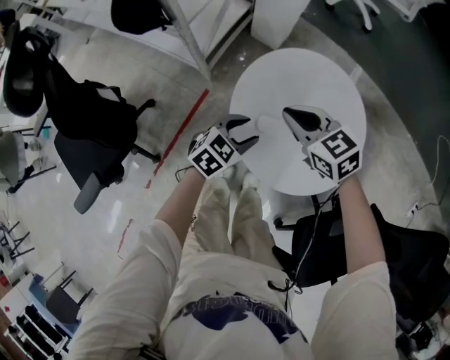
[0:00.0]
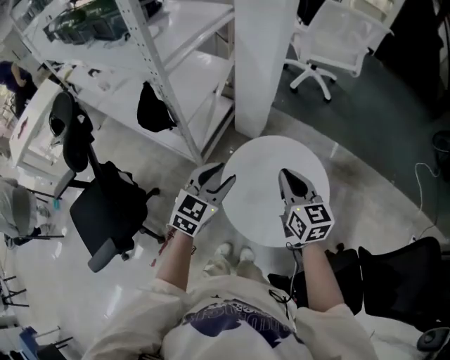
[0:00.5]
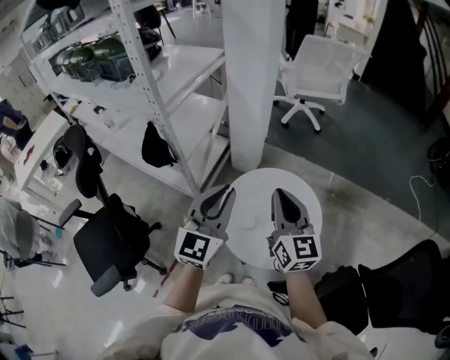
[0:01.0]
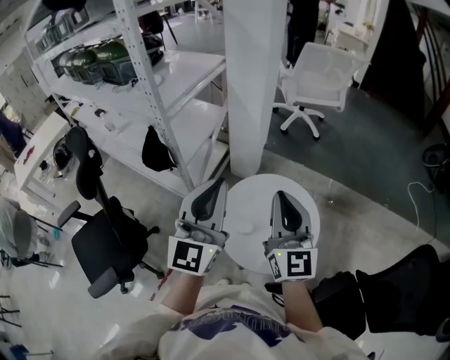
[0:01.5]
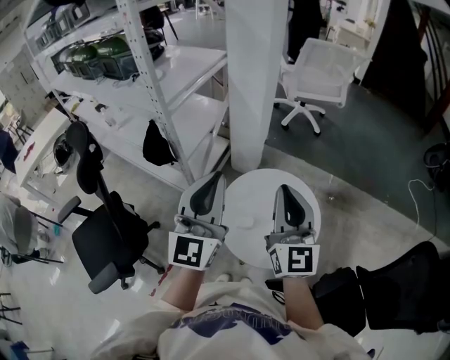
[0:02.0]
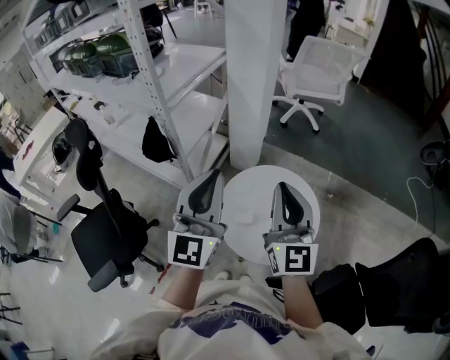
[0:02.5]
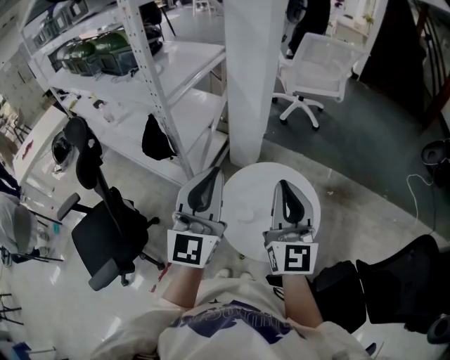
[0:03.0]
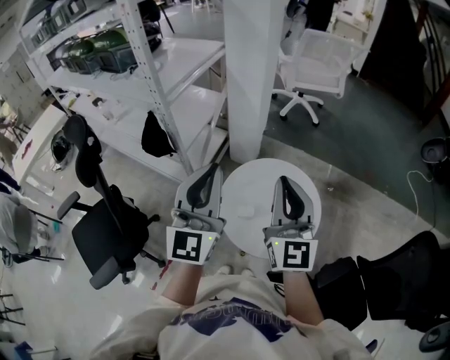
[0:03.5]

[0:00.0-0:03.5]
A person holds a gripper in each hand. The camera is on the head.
0:00.0 to 0:02.0: The two grippers go roughly 40 cm upward. The left gripper tips its fingers upward by approximately 60 degrees, and closes up. Meanwhile the right gripper angles its fingers upward, by some 50 degrees.
0:02.0 to 0:03.5: The grippers make only small movements.

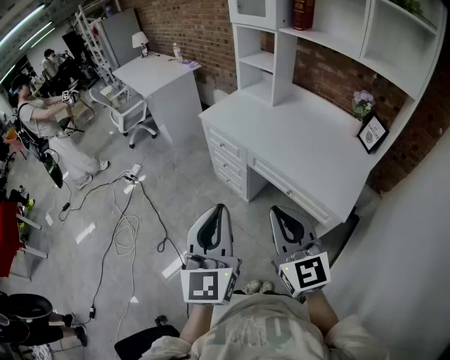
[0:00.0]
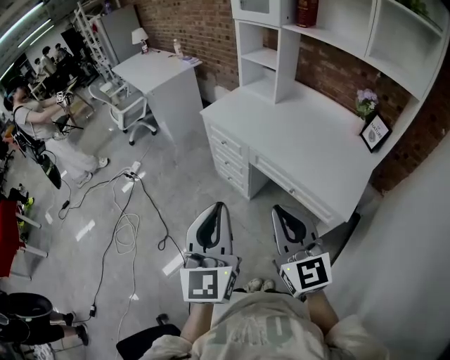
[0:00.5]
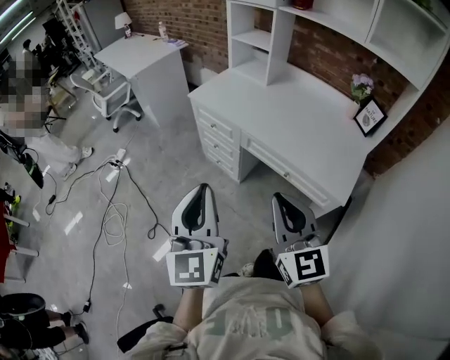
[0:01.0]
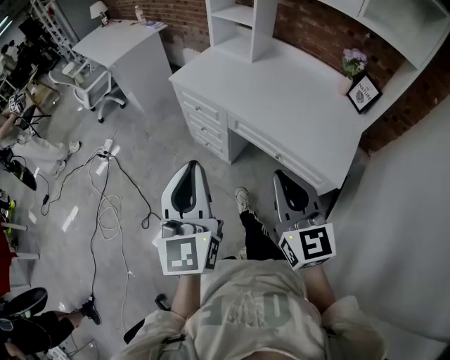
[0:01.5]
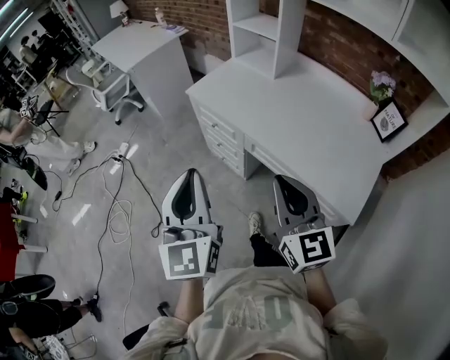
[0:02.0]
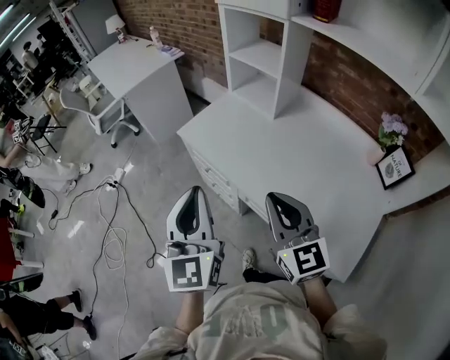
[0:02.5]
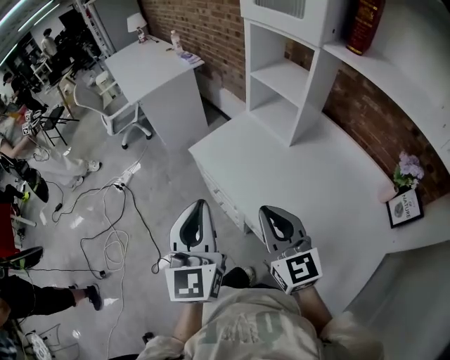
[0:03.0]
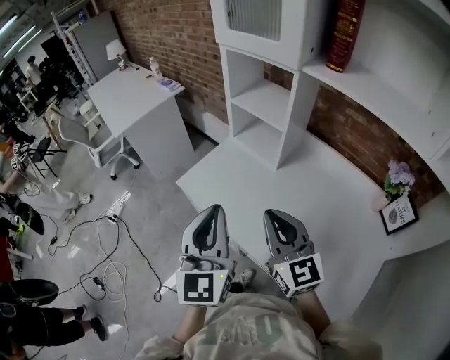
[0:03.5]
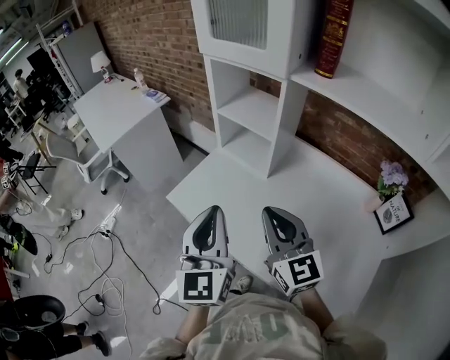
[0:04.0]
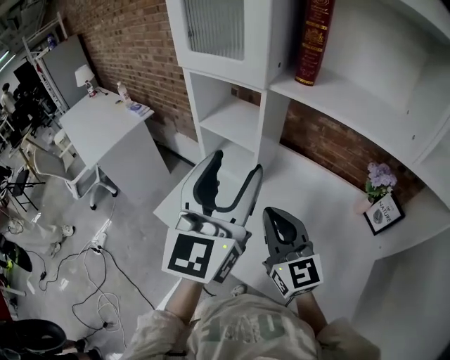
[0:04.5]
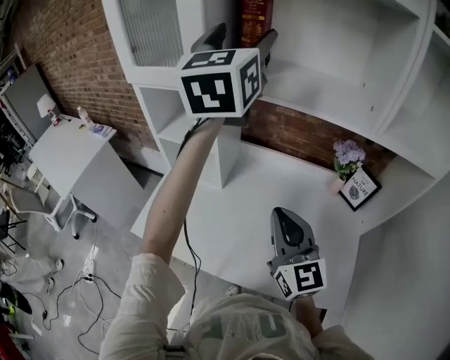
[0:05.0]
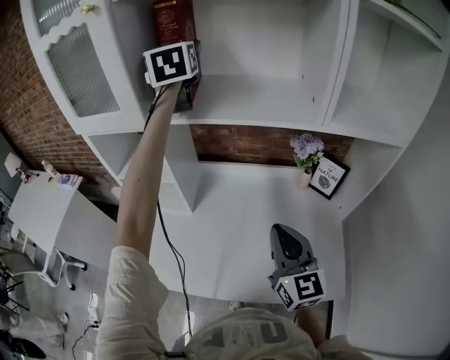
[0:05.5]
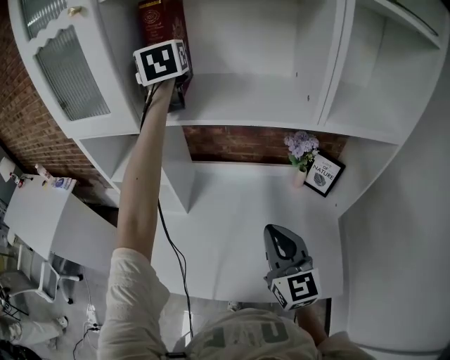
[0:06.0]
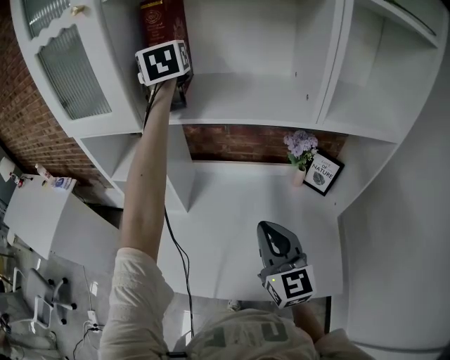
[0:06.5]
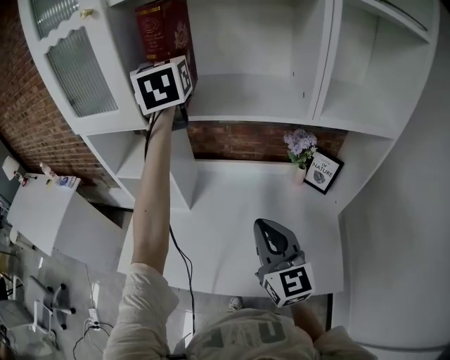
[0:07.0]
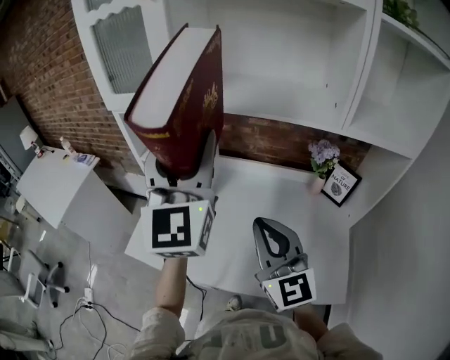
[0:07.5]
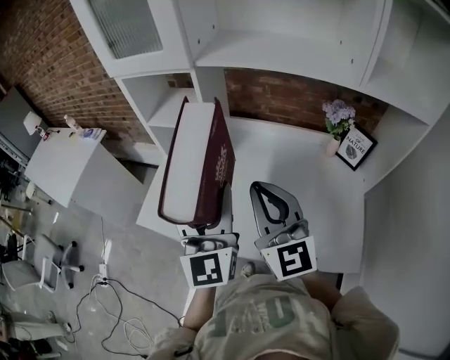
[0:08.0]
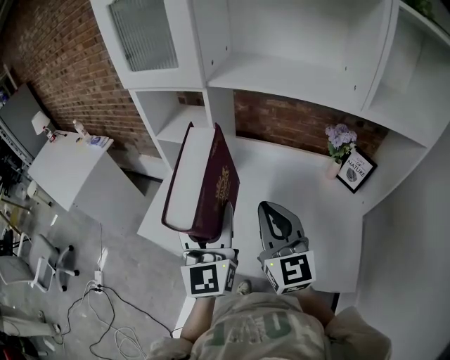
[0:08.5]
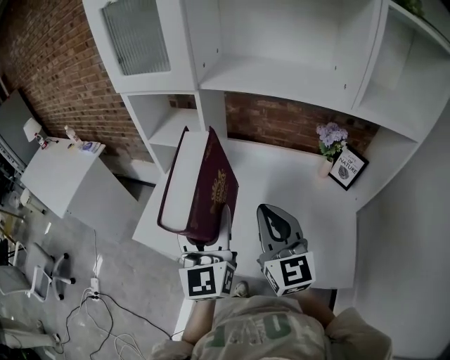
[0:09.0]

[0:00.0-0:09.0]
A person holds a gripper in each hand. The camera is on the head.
0:00.0 to 0:02.0: The grippers both shift forward by about 15 cm.
0:02.0 to 0:04.5: The right gripper shifts by roughly 40 cm, while the left gripper moves roughly 50 cm, rotates approximately 30 degrees, and opens.
0:04.5 to 0:07.0: The left gripper goes roughly 35 cm forward, upward and to the right. The right gripper shifts some 15 cm to the right, and turns by about 30 degrees.
0:07.0 to 0:09.0: The right gripper is displaced to the left by roughly 10 cm. The left gripper moves backward and downward, roughly 40 cm.

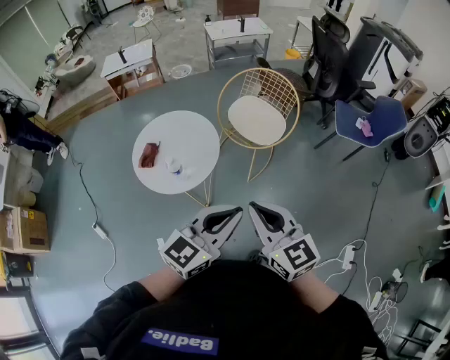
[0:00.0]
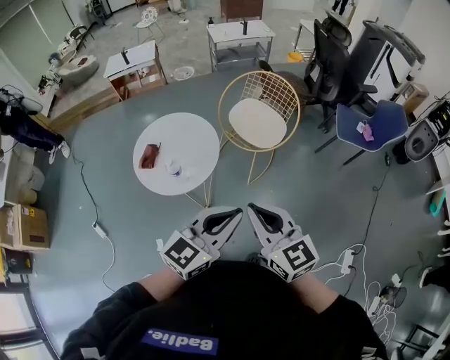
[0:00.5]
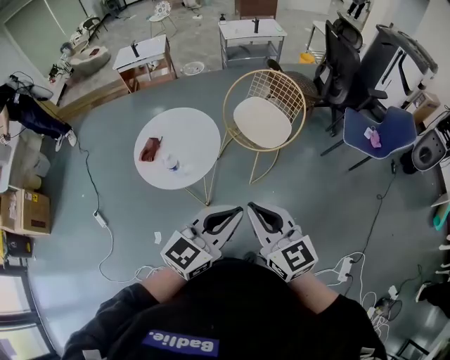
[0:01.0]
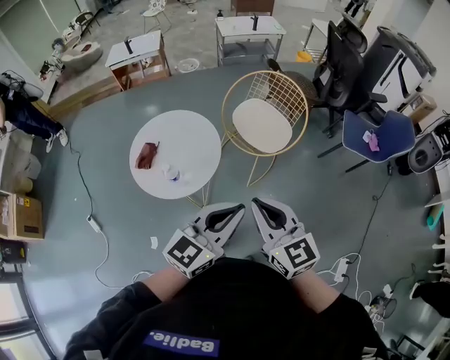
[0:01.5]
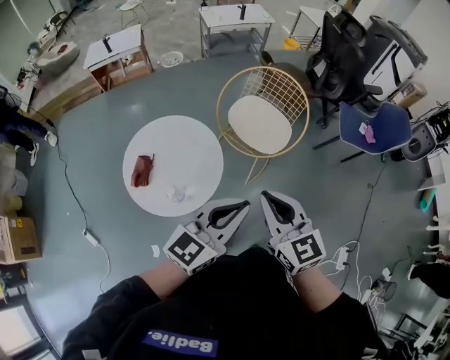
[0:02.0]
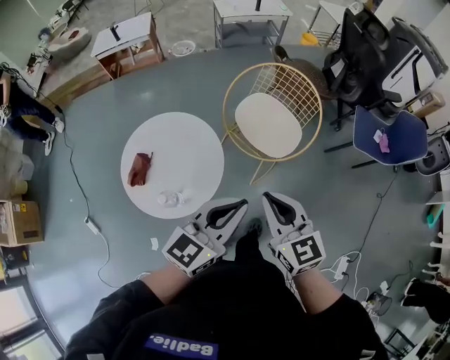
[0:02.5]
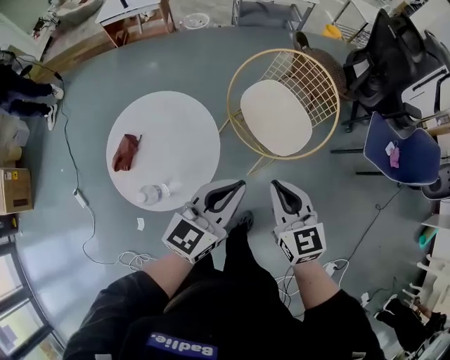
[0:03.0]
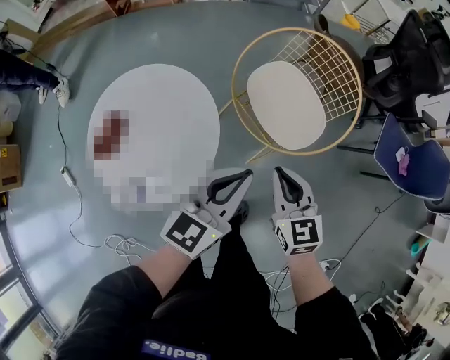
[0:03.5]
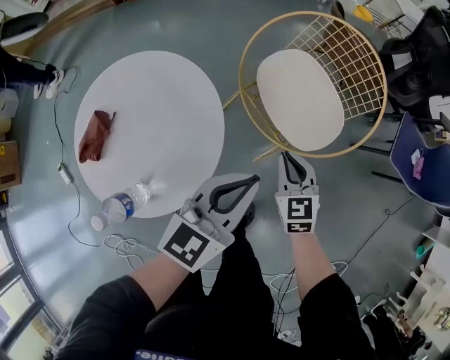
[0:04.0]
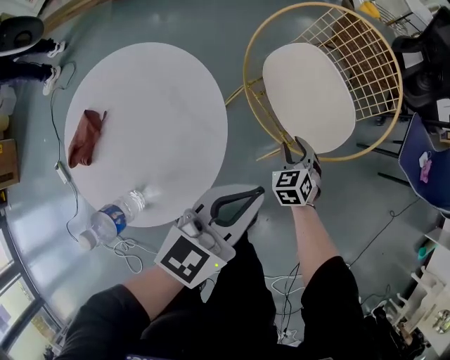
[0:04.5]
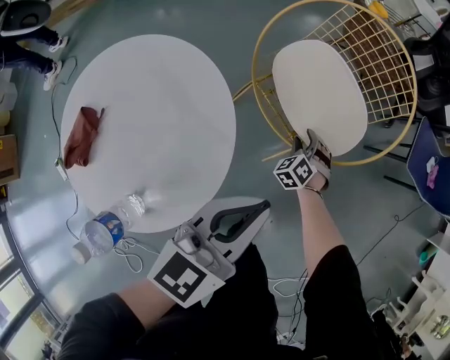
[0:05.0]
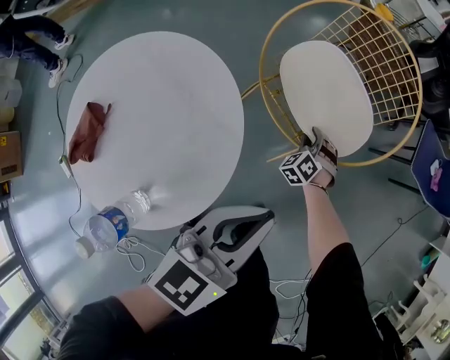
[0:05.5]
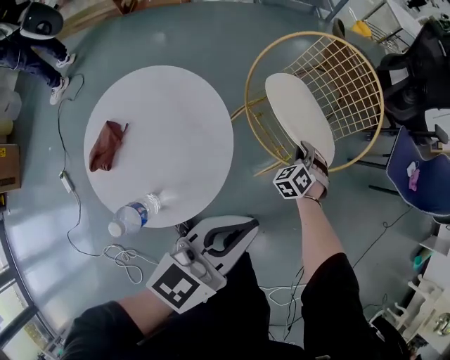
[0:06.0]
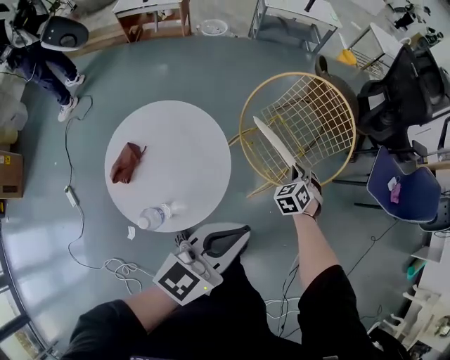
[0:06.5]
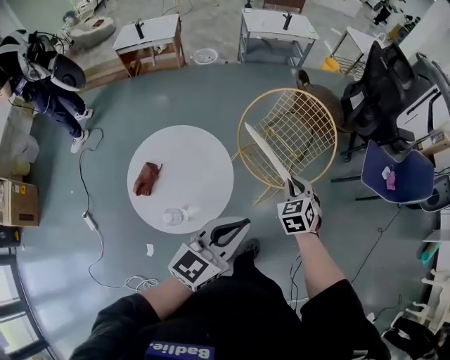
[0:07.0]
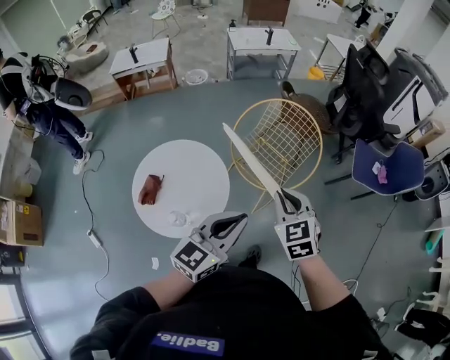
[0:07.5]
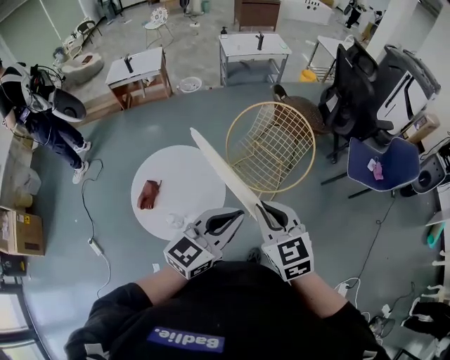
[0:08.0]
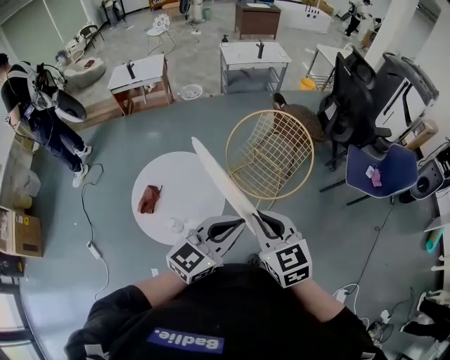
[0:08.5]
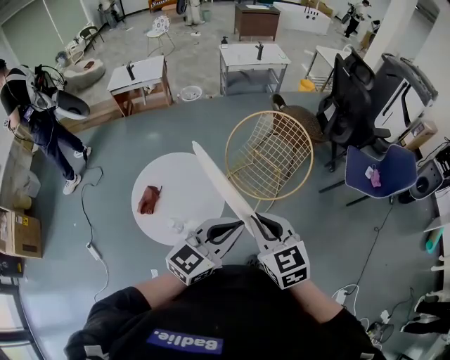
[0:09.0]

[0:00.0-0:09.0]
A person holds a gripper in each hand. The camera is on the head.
0:00.0 to 0:02.0: Both grippers travel together forward, approximately 15 cm.
0:02.0 to 0:04.5: The right gripper is displaced downward and forward by some 60 cm, points its fingers roughly 30 degrees further downward, and opens. The left gripper shifts some 35 cm downward and forward, and changes its angle by some 20 degrees.
0:04.5 to 0:07.0: The left gripper goes about 25 cm upward and backward. The right gripper moves upward, roughly 30 cm.
0:07.0 to 0:09.0: The left gripper changes place by some 5 cm, while the right gripper goes some 25 cm backward and upward, and changes its angle by about 30 degrees.

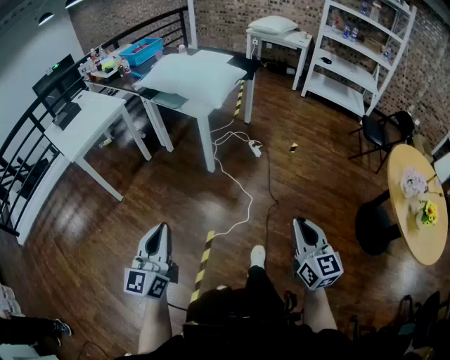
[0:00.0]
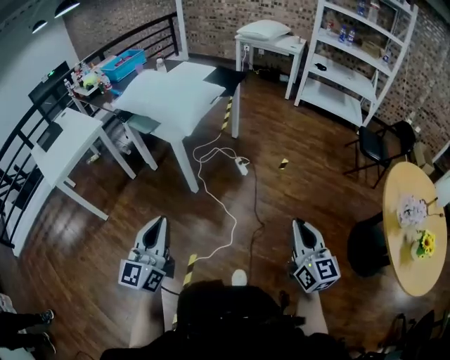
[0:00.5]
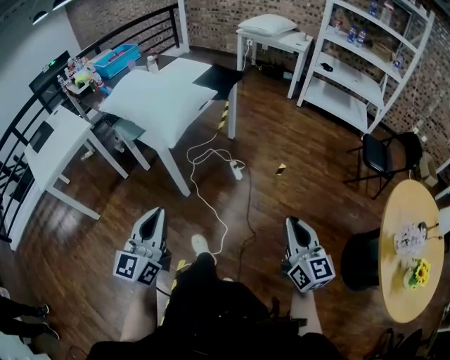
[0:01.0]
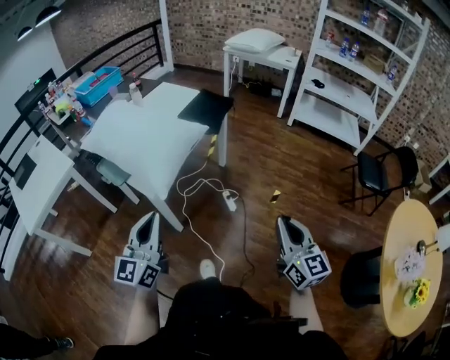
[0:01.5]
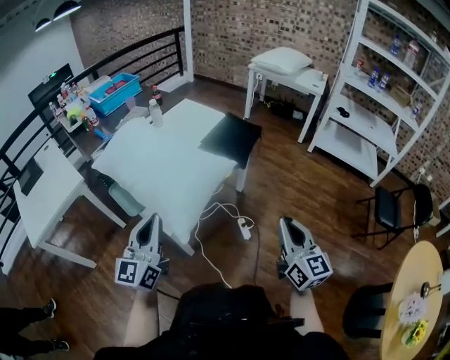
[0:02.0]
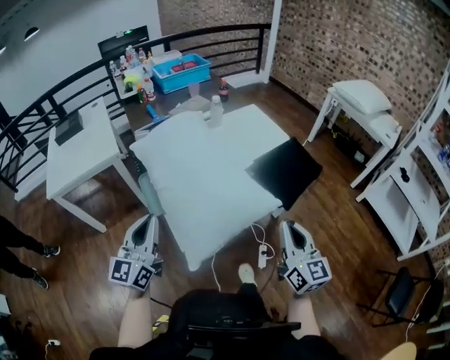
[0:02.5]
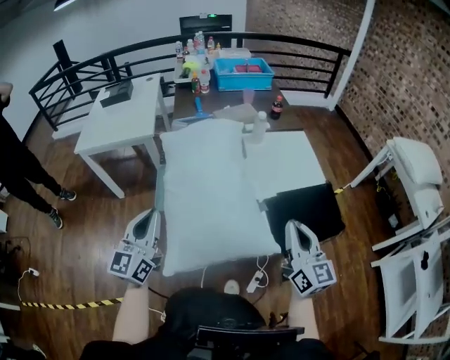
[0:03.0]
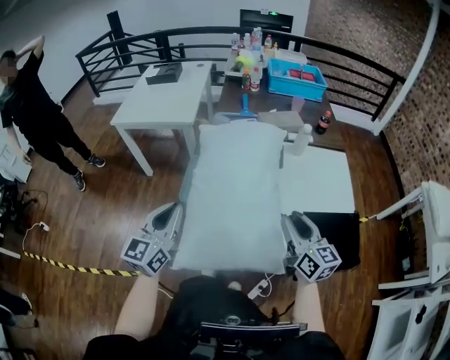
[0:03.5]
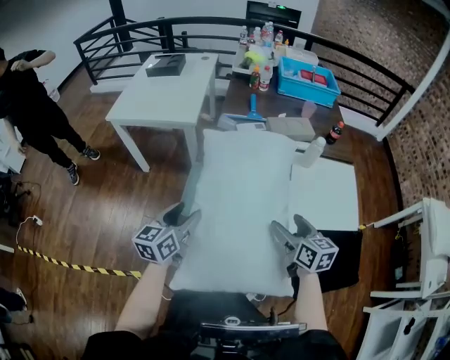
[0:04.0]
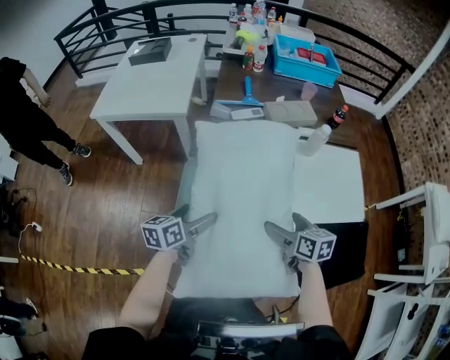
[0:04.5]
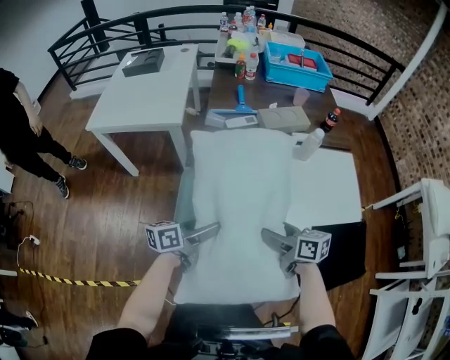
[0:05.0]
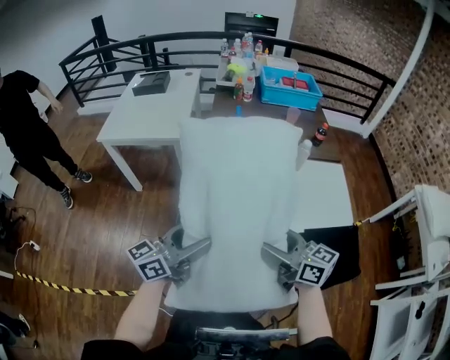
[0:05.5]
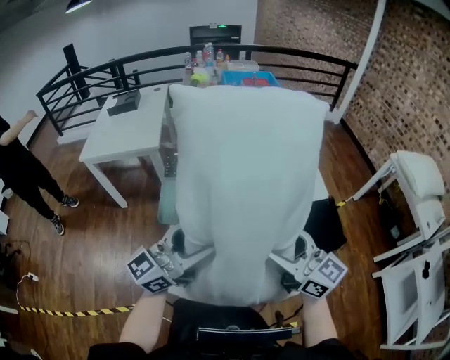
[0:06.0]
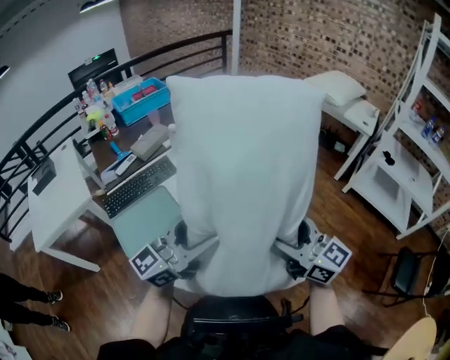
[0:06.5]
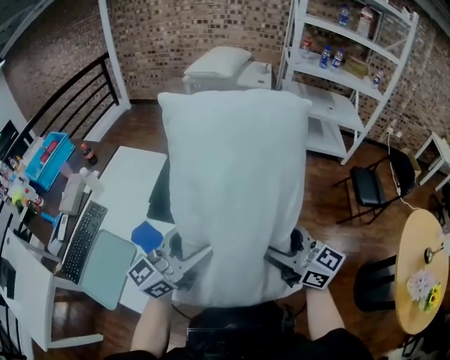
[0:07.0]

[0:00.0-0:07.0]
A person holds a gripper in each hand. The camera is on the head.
0:00.0 to 0:02.0: Both grippers are carried forward, roughly 70 cm.
0:02.0 to 0:03.5: The left gripper shifts by some 20 cm, and swivels roughly 50 degrees; the right gripper ends up roughly 50 cm from where it was, and rotates about 60 degrees.
0:03.5 to 0:05.0: The right gripper shifts approximately 20 cm downward, forward and to the left, swivels about 40 degrees, and opens its fingers. The left gripper goes roughly 20 cm downward and forward, rotates around the line of its fingers by some 50 degrees, counterclockwise from behind, and opens.
0:05.0 to 0:07.0: The two grippers travel together, some 50 cm. The right gripper changes its angle by some 80 degrees; the left gripper tilts its fingers about 30 degrees upward.
